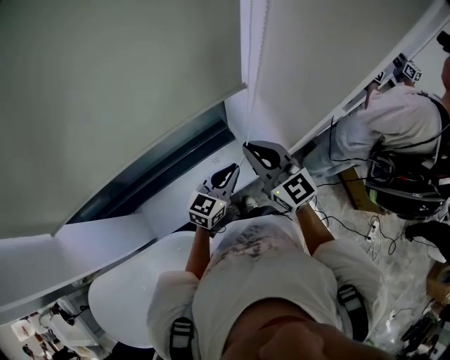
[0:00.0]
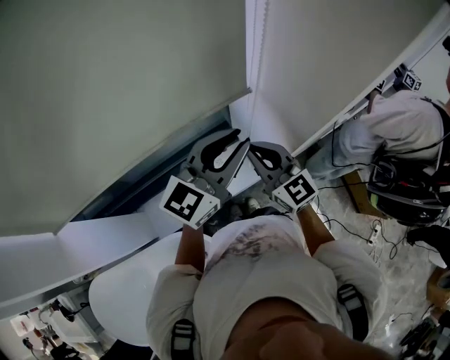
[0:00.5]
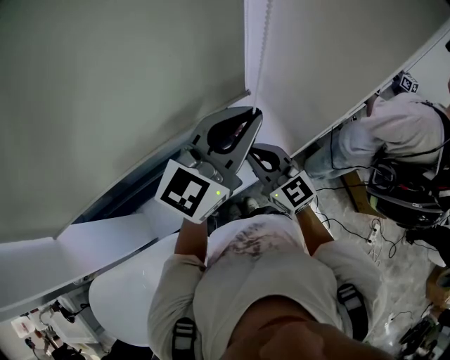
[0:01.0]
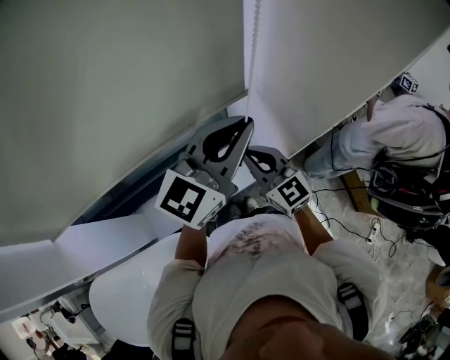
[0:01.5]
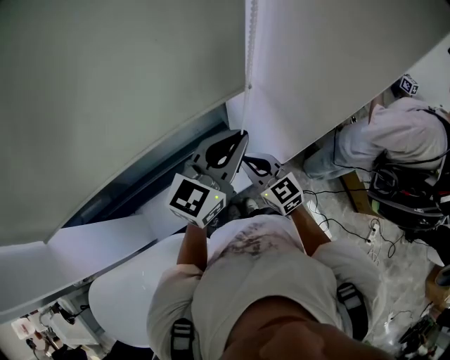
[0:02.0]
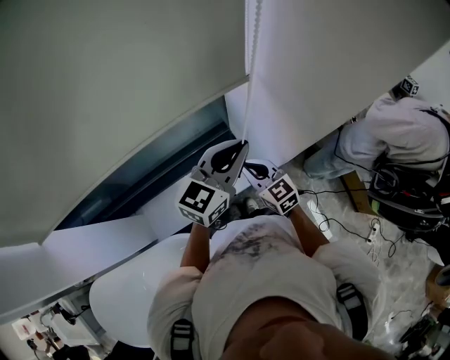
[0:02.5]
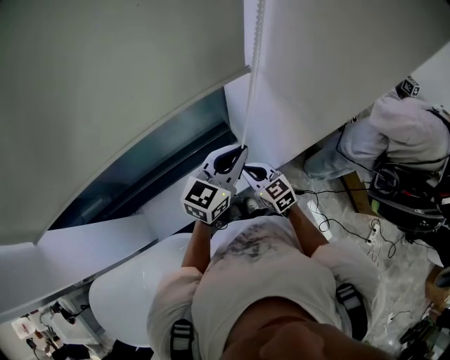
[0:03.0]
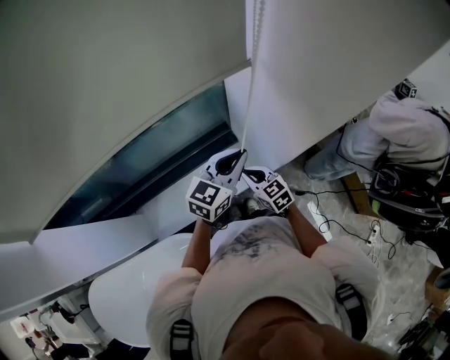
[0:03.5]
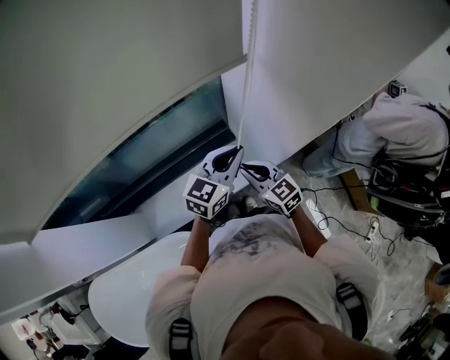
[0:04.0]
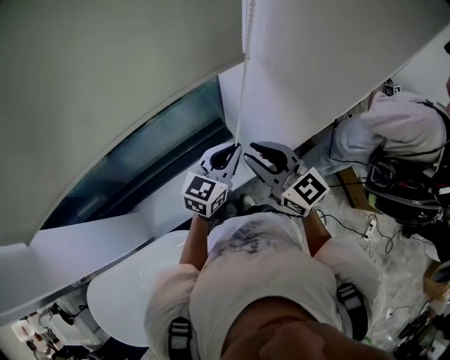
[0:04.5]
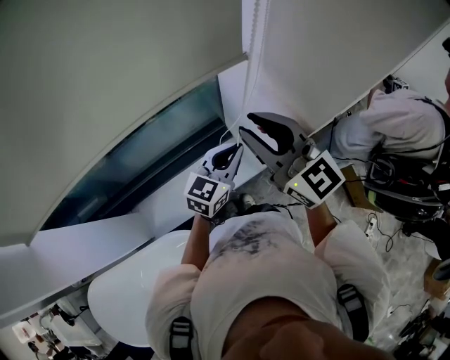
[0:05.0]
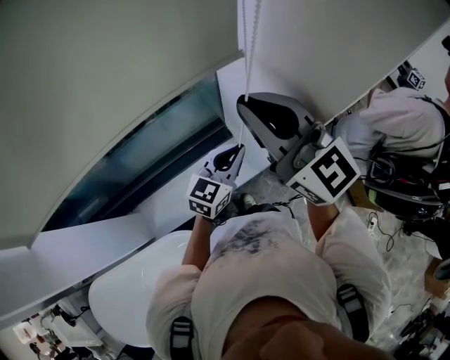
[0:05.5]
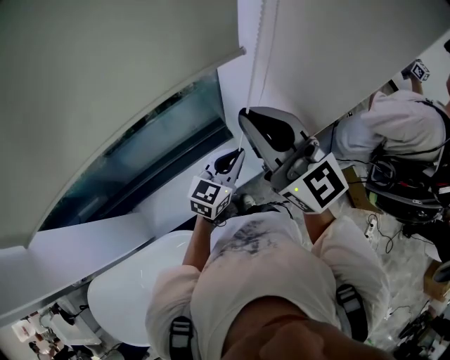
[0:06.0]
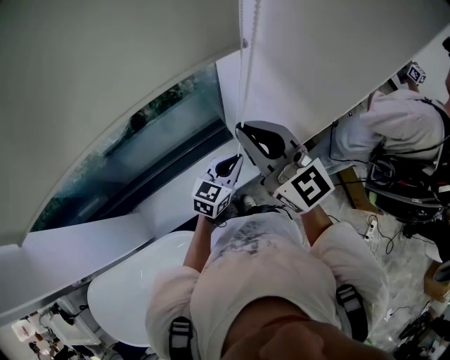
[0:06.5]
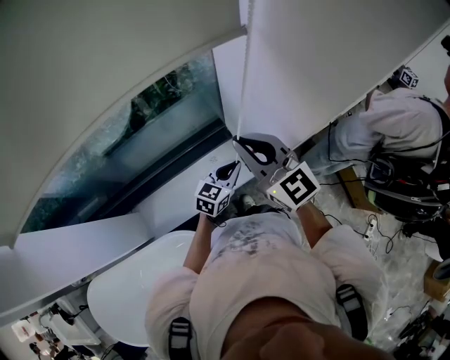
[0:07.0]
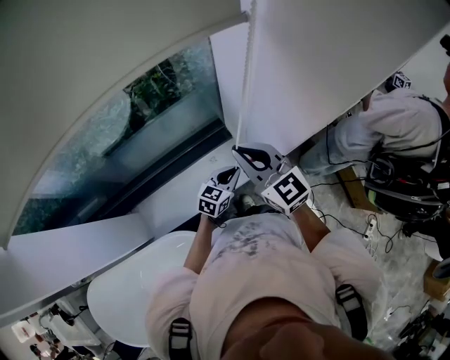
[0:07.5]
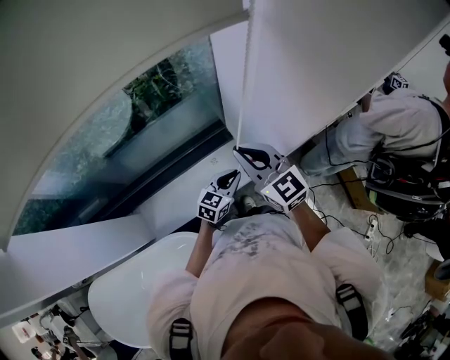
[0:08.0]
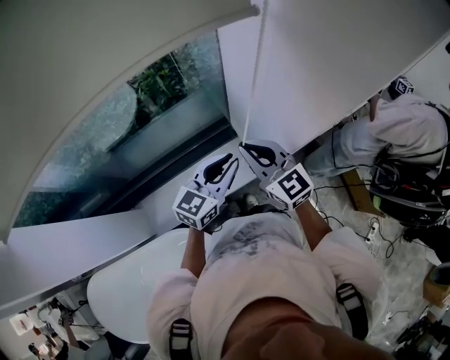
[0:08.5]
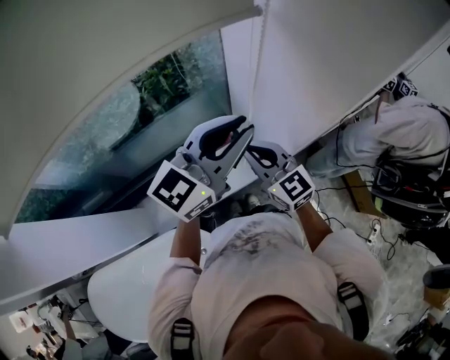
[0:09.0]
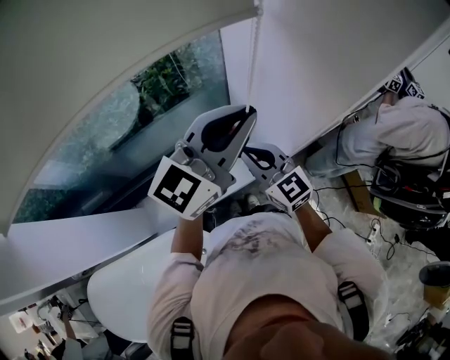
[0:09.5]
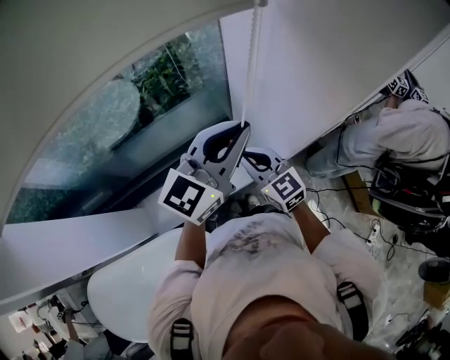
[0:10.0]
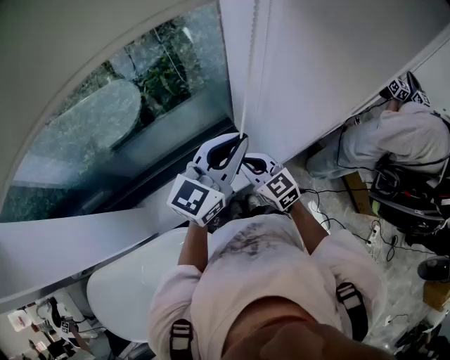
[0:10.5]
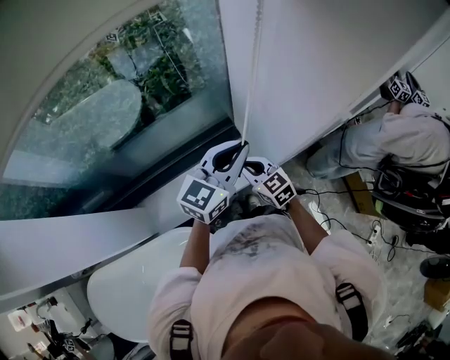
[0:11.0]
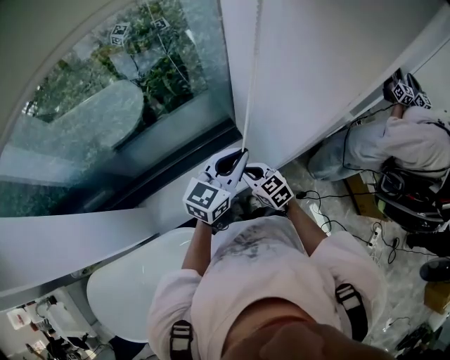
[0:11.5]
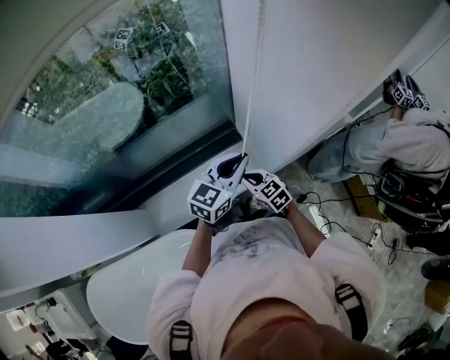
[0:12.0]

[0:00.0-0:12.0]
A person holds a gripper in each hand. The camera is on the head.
0:00.0 to 0:02.0: The left gripper travels upward by roughly 20 cm, while the right gripper heads downward, covering about 10 cm.
0:02.0 to 0:04.0: The right gripper shifts some 5 cm downward, while the left gripper is displaced downward by some 15 cm.
0:04.0 to 0:06.0: The right gripper is displaced upward by approximately 30 cm, and angles its fingers upward, by approximately 30 degrees.
0:06.0 to 0:08.0: Both grippers travel together downward, some 15 cm.
0:08.0 to 0:10.0: The right gripper shifts by about 5 cm; the left gripper shifts roughly 35 cm upward, and rotates some 30 degrees.
0:10.0 to 0:12.0: The grippers both shift downward by roughly 15 cm. The right gripper rotates about 20 degrees.

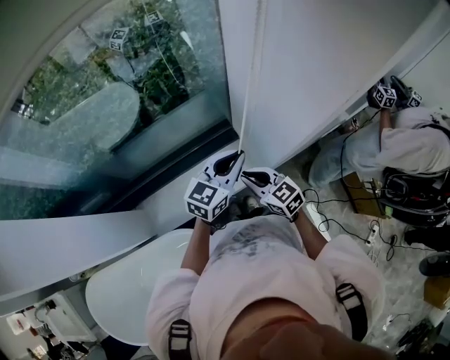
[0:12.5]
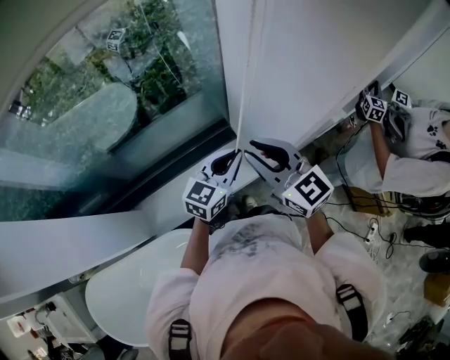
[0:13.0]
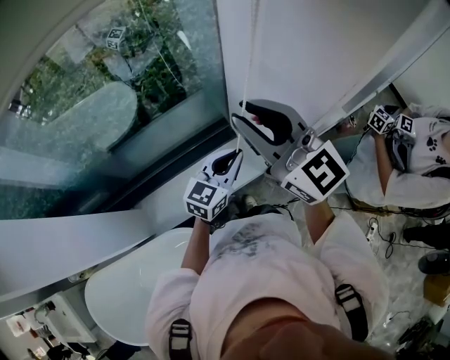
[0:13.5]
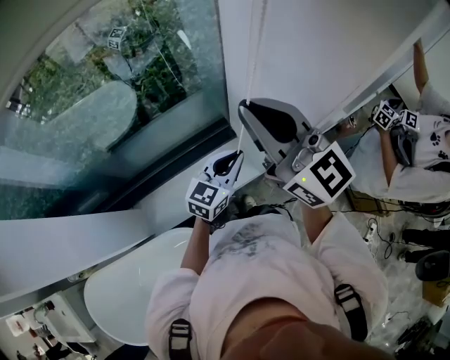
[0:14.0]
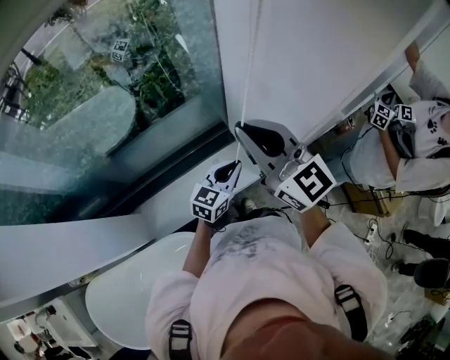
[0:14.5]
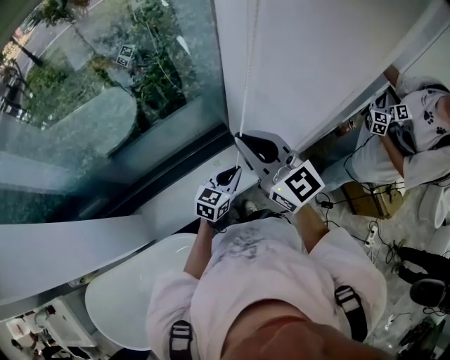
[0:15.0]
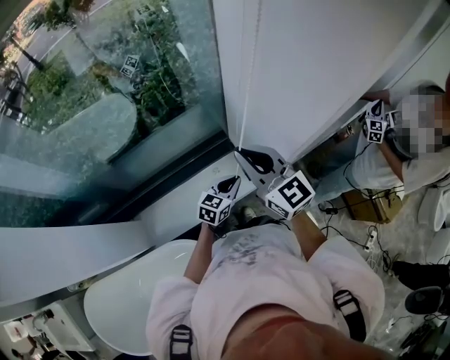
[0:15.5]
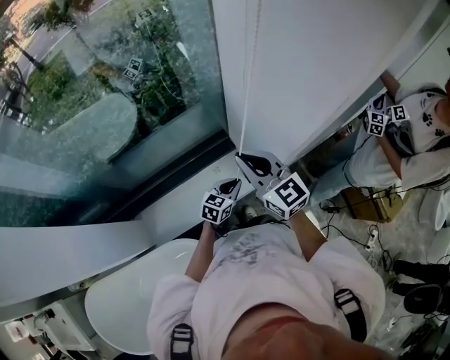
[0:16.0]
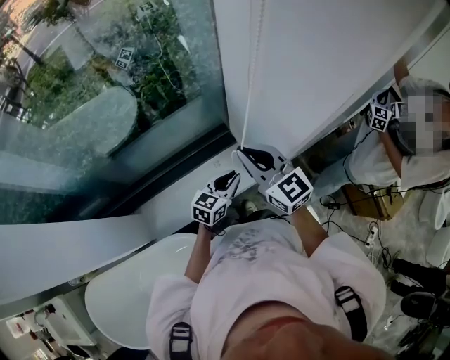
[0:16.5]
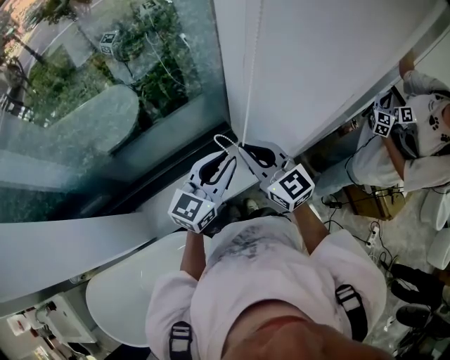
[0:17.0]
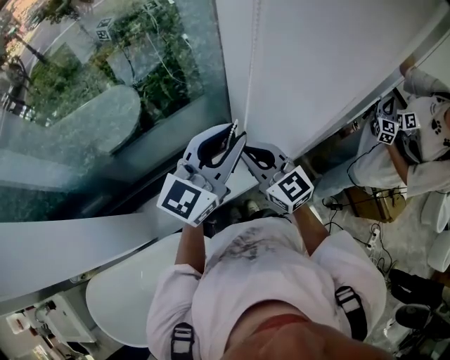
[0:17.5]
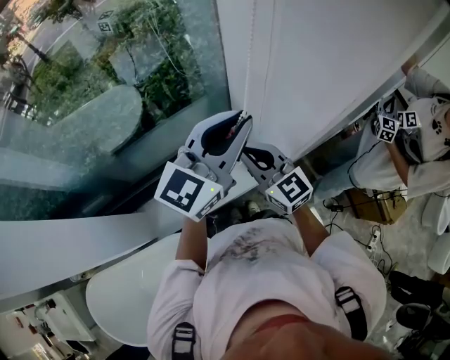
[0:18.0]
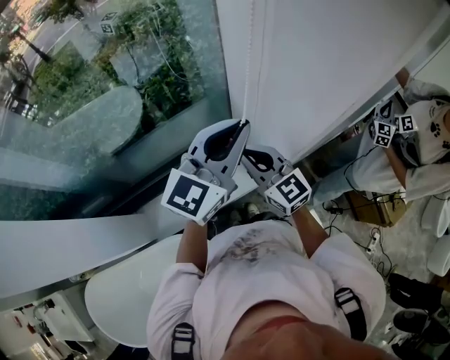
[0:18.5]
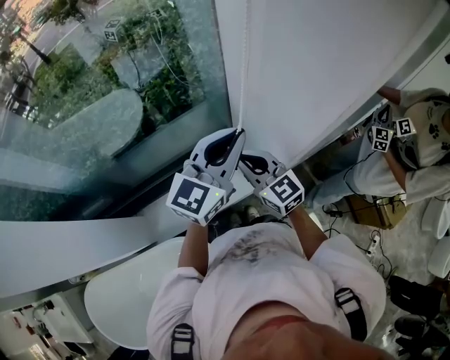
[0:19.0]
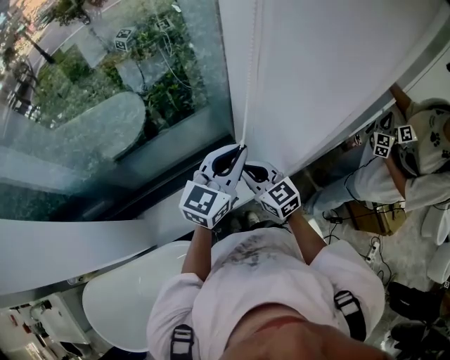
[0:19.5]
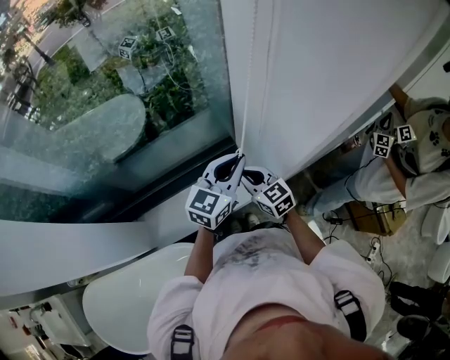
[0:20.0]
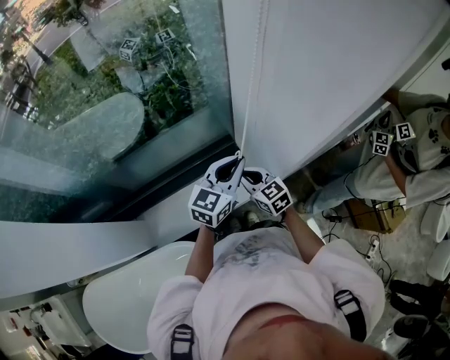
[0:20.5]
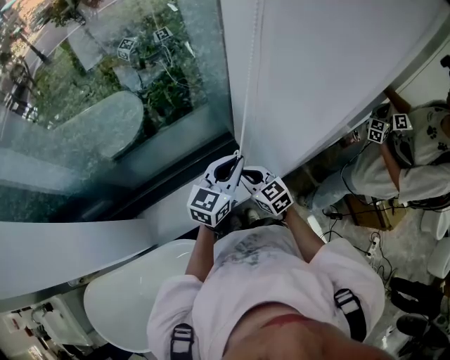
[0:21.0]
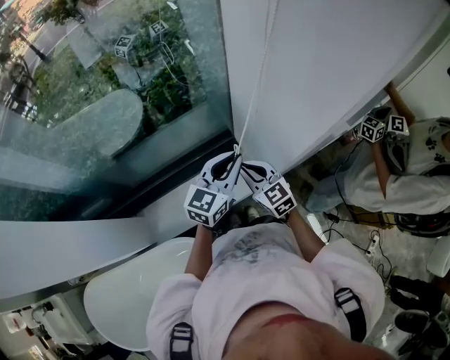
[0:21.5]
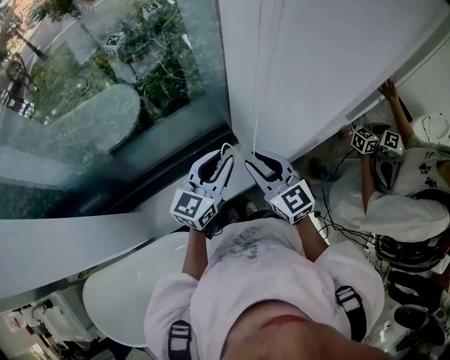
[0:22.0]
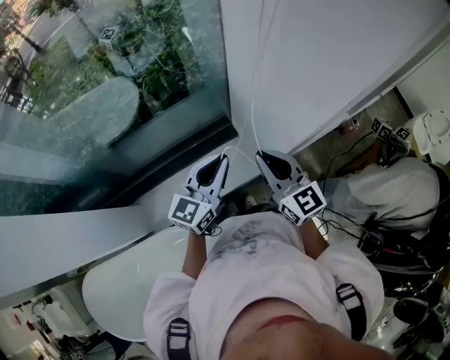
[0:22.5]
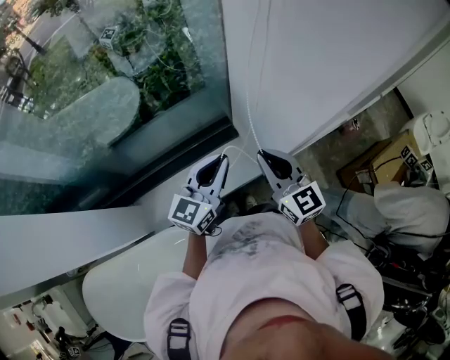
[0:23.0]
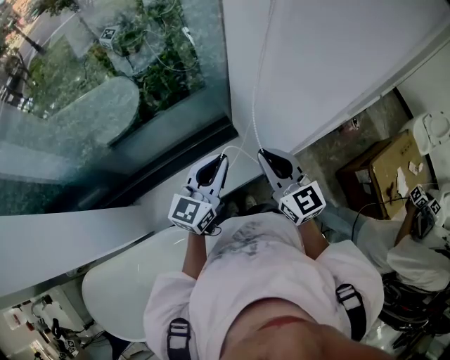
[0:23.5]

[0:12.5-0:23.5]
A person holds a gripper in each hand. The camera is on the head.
0:12.5 to 0:14.5: The right gripper is displaced upward by approximately 25 cm, and tilts its fingers some 30 degrees upward. Meanwhile the left gripper travels downward by about 5 cm.
0:14.5 to 0:16.0: Both grippers move downward, approximately 15 cm.
0:16.0 to 0:18.0: The left gripper moves upward, about 40 cm, and tips its fingers upward by some 30 degrees.
0:18.0 to 0:20.0: Both grippers move downward, some 15 cm.
0:20.0 to 0:21.5: The grippers make only small movements.
0:21.5 to 0:23.5: The right gripper travels upward and to the right by about 15 cm. Meanwhile the left gripper ends up approximately 5 cm from where it was.

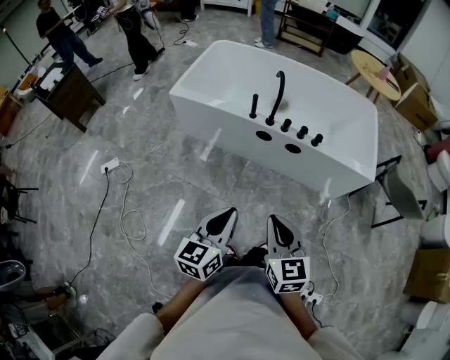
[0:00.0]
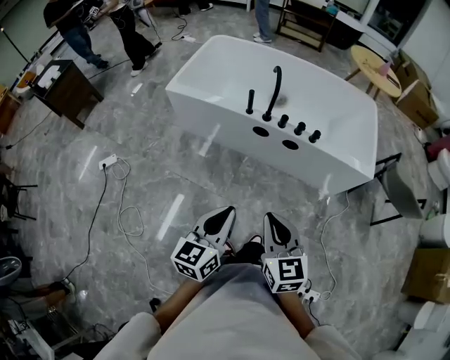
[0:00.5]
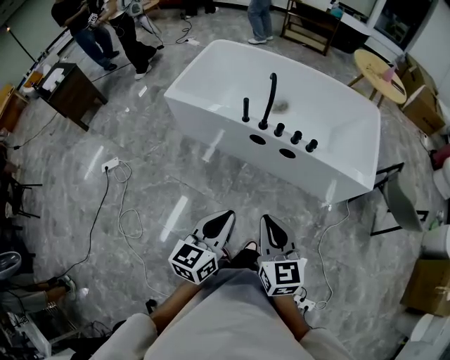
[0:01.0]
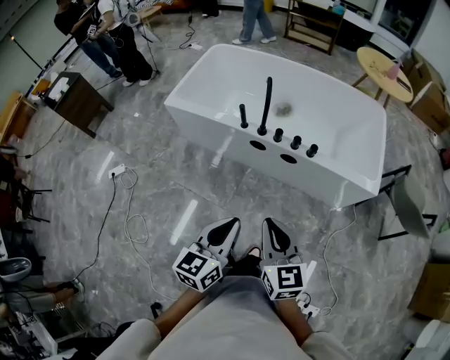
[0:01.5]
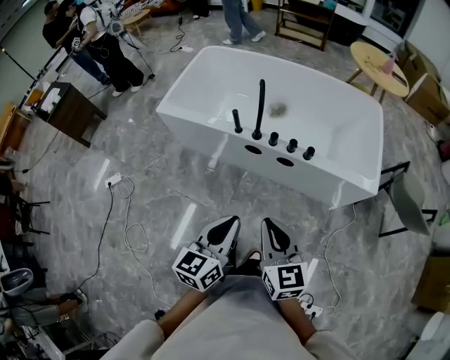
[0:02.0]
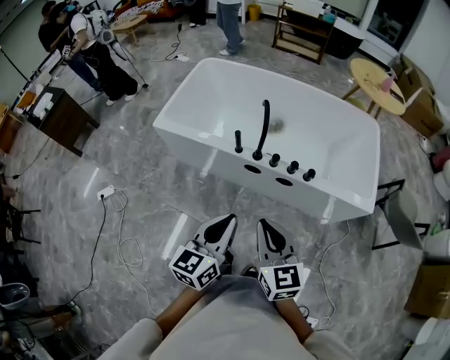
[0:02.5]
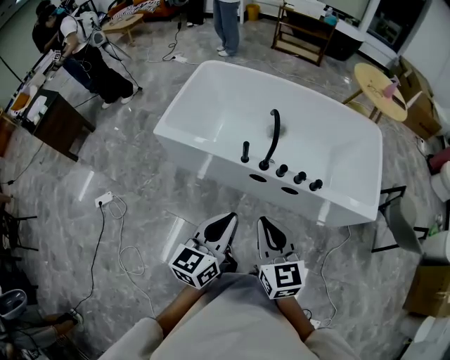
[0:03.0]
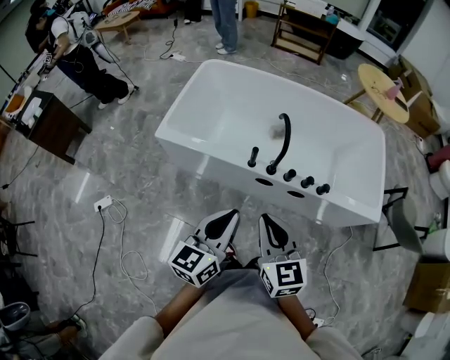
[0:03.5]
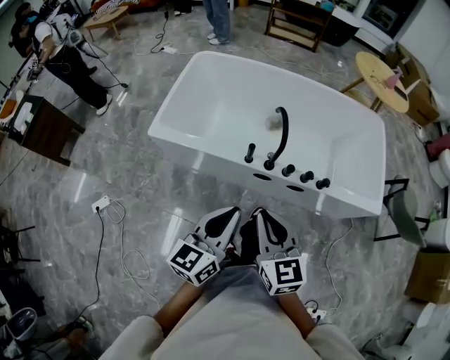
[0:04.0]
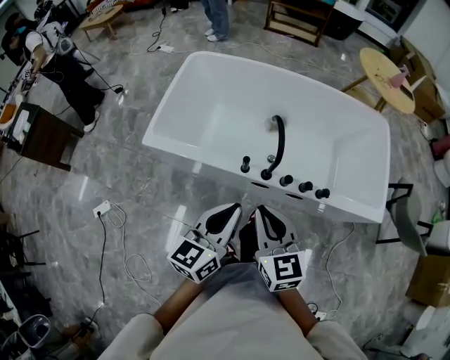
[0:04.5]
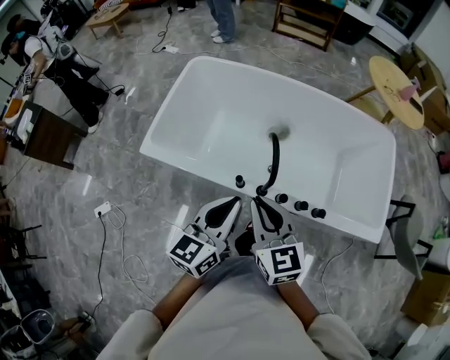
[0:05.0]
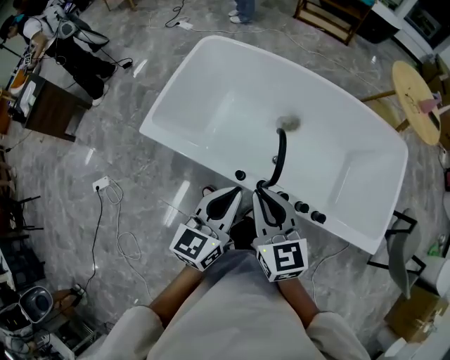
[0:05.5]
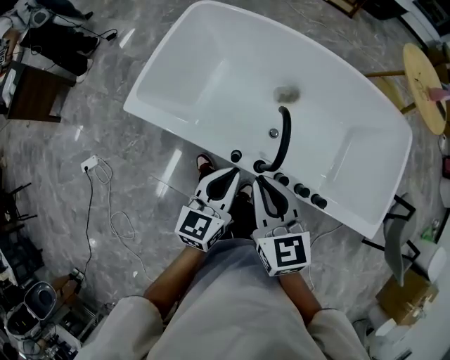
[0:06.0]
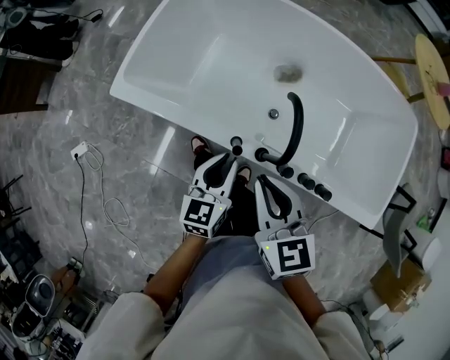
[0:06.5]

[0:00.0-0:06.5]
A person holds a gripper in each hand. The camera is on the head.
0:00.0 to 0:02.0: The left gripper shifts about 15 cm to the right and forward, while the right gripper shifts about 15 cm forward and to the right.
0:02.0 to 0:04.5: Both grippers travel together forward and to the left, roughly 35 cm.
0:04.5 to 0:06.5: The right gripper travels forward and downward by some 20 cm, while the left gripper travels downward and forward by roughly 25 cm, and changes its angle by some 20 degrees.
